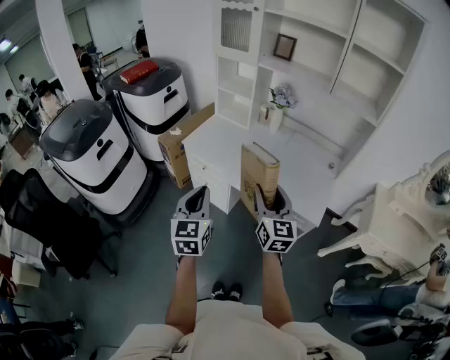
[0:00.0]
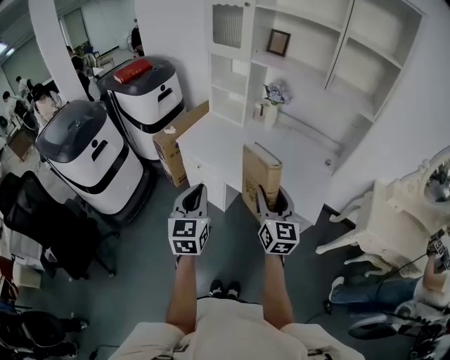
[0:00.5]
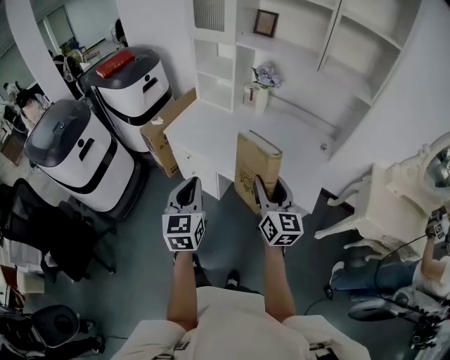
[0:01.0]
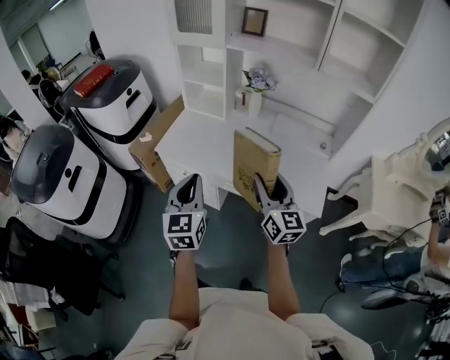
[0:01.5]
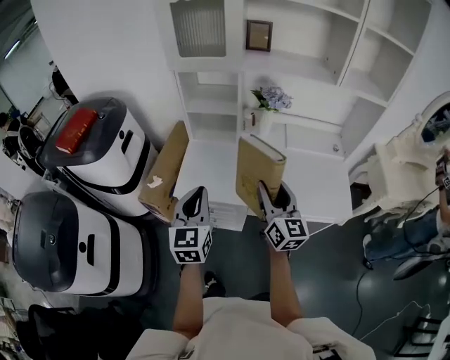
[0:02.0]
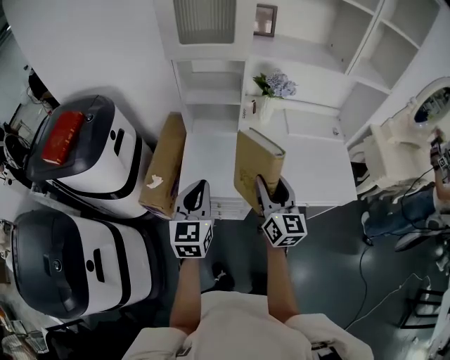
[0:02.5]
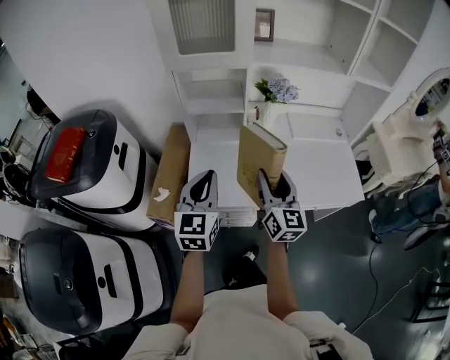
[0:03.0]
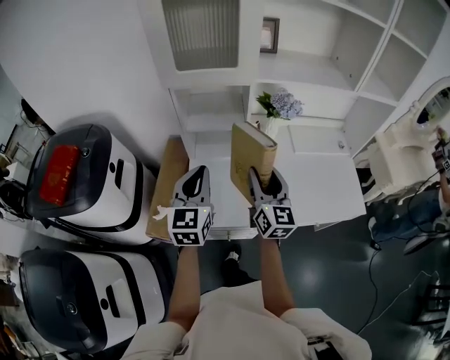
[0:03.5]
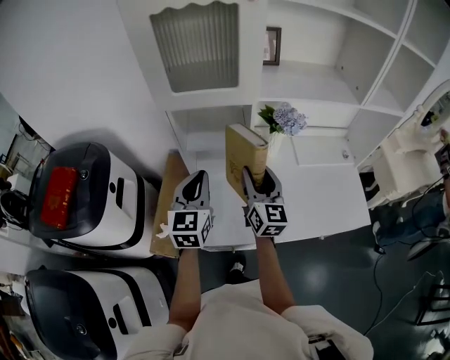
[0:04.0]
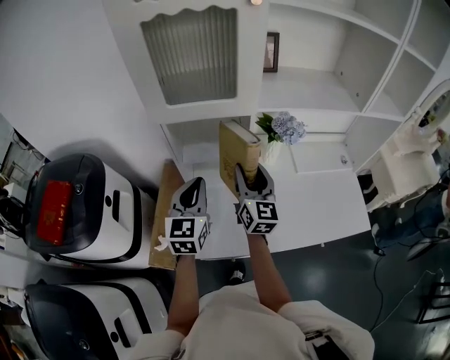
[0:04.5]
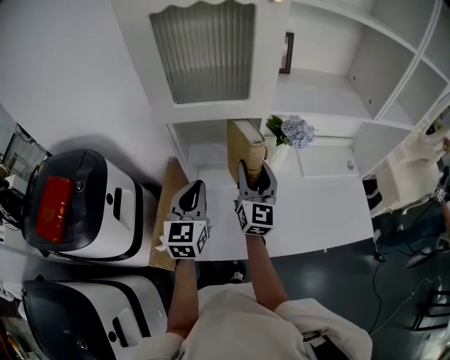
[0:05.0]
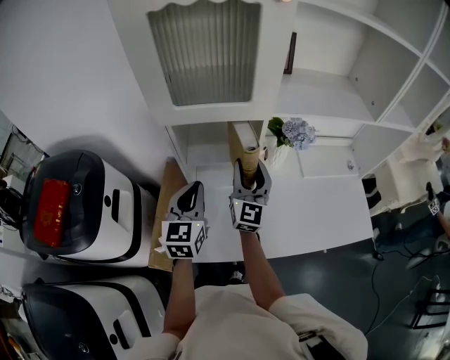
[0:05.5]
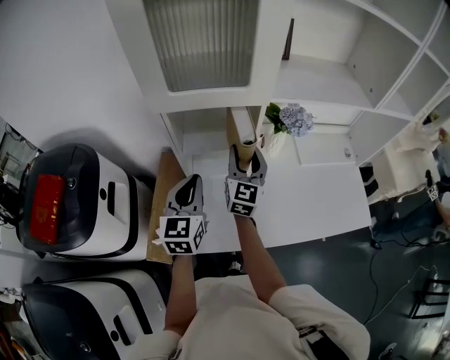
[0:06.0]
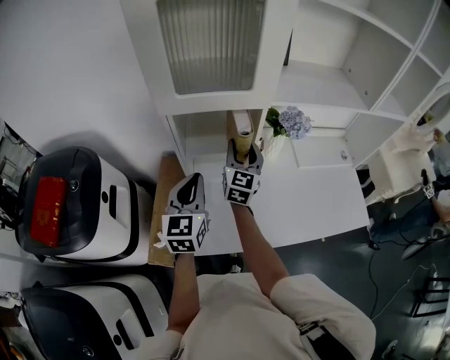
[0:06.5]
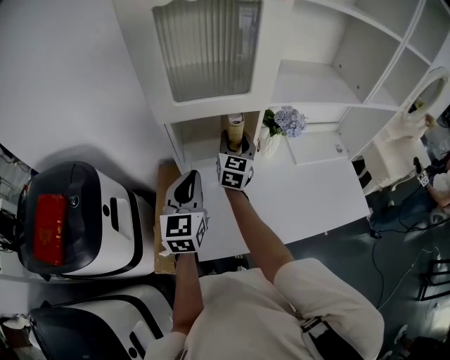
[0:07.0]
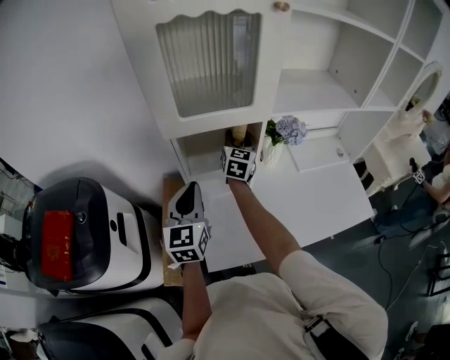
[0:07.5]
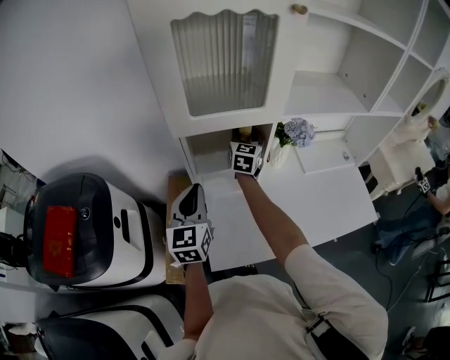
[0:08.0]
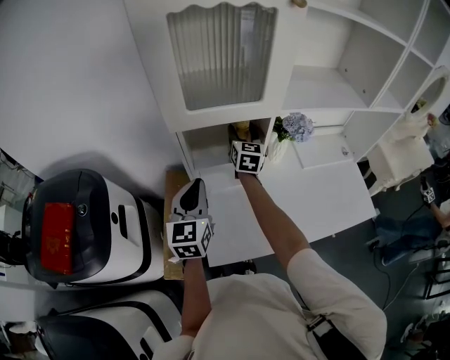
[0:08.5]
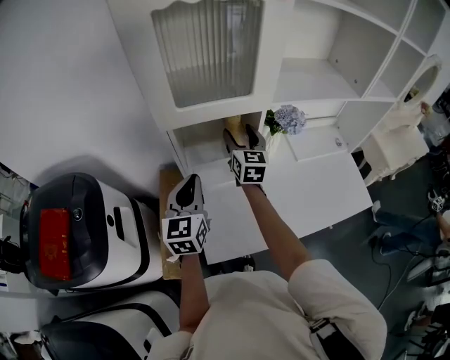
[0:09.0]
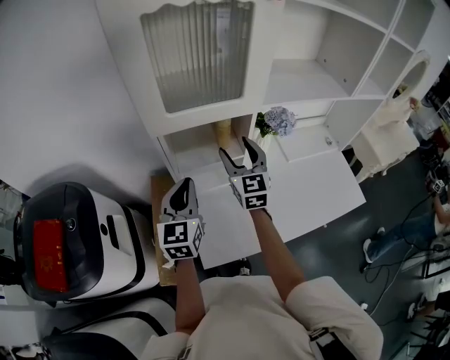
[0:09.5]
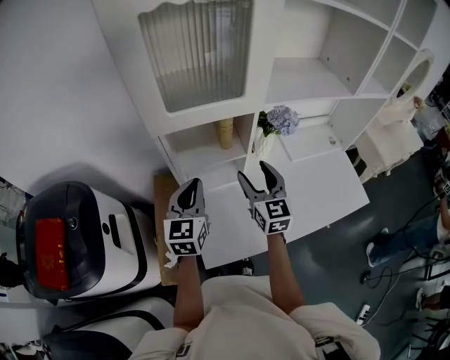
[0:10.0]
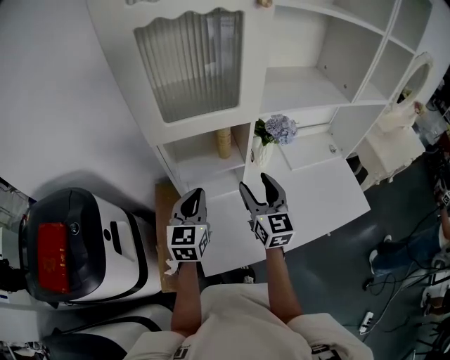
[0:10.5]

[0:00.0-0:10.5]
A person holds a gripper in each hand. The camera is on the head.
0:00.0 to 0:02.0: Both grippers move forward and to the left, some 35 cm. The right gripper swivels about 20 degrees, while the left gripper rotates roughly 20 degrees.
0:02.0 to 0:04.0: The left gripper heads forward, covering approximately 30 cm, while the right gripper goes roughly 30 cm forward and to the left.
0:04.0 to 0:06.5: The right gripper shifts roughly 15 cm forward and to the left, and changes its angle by some 20 degrees. The left gripper ends up roughly 5 cm from where it was.
0:06.5 to 0:08.5: The left gripper shifts by roughly 5 cm, while the right gripper goes about 10 cm forward.
0:08.5 to 0:10.5: The left gripper shifts by approximately 5 cm; the right gripper moves backward, about 20 cm.

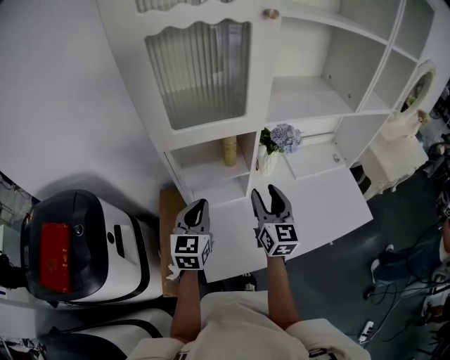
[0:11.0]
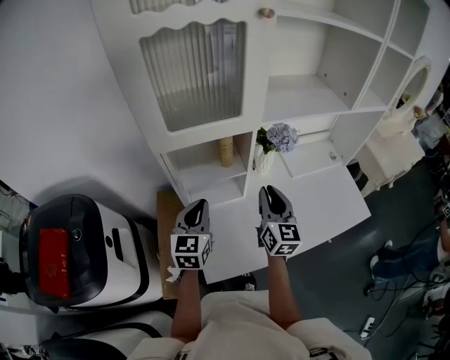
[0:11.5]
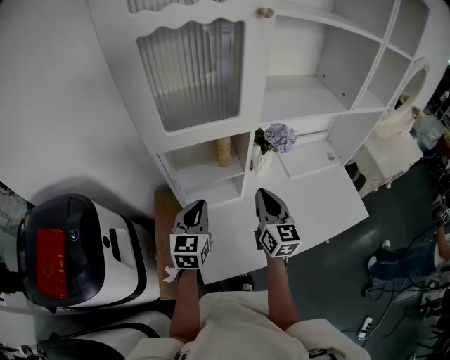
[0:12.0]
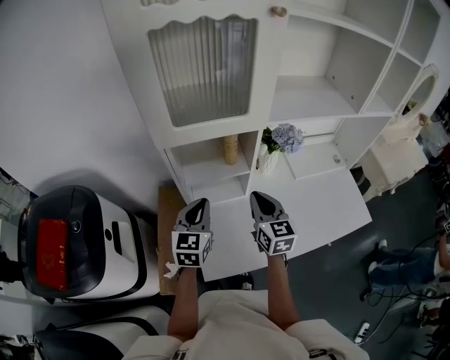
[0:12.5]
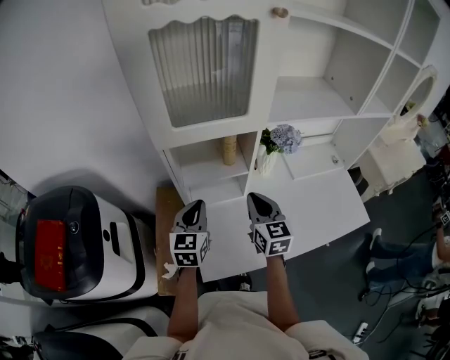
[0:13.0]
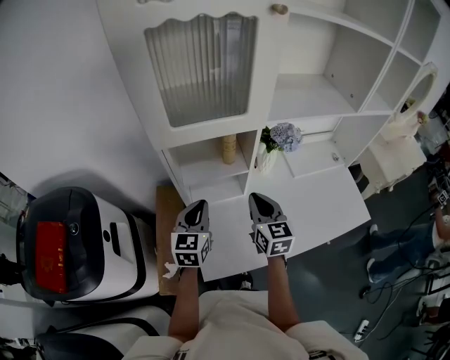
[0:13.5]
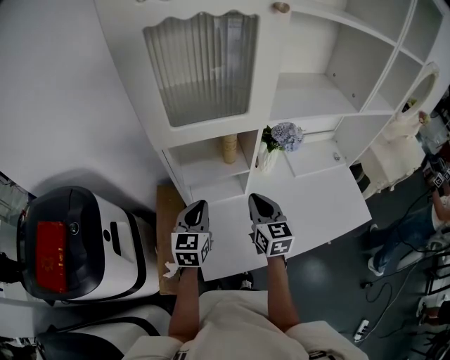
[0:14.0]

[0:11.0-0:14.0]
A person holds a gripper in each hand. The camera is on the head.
0:11.0 to 0:12.5: The right gripper closes.
0:12.5 to 0:14.0: The grippers stay close to where they were, moving slightly.

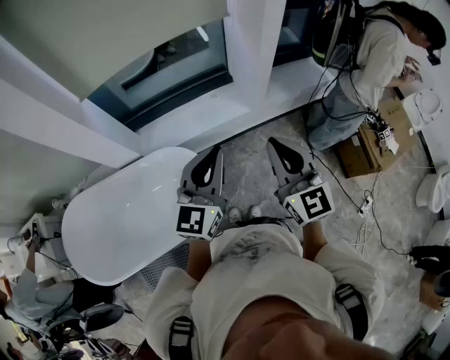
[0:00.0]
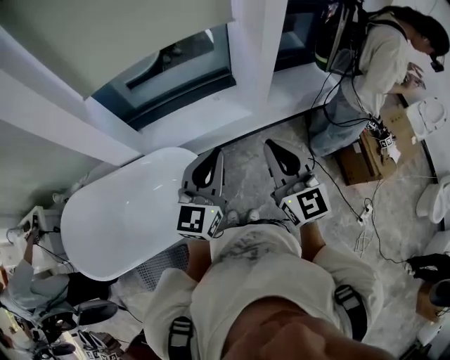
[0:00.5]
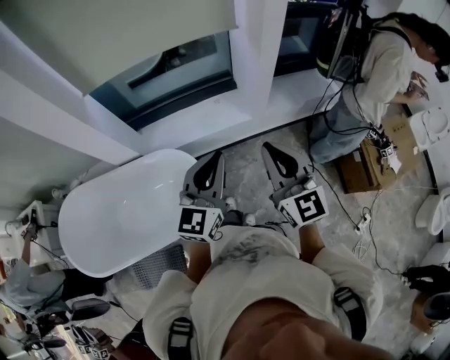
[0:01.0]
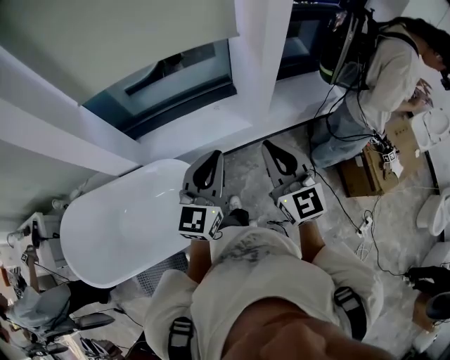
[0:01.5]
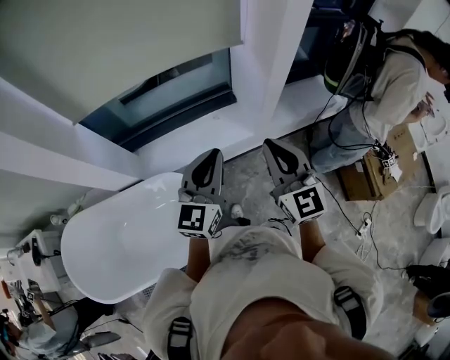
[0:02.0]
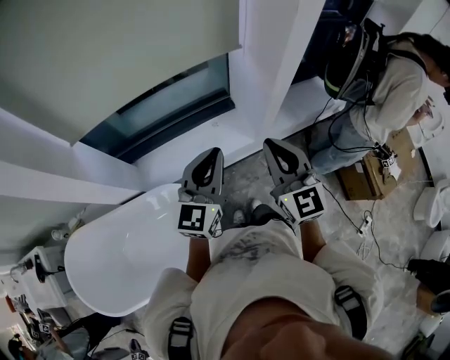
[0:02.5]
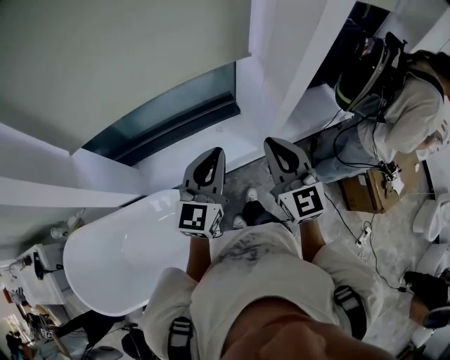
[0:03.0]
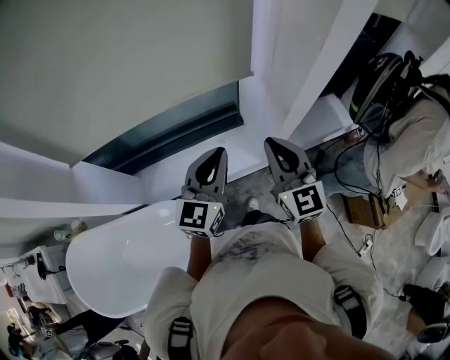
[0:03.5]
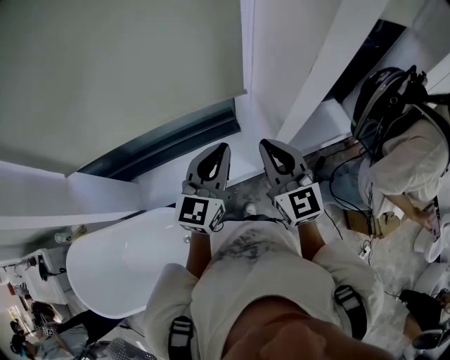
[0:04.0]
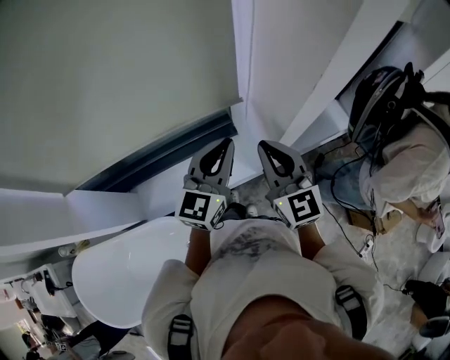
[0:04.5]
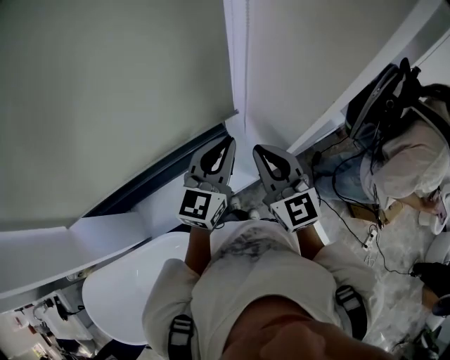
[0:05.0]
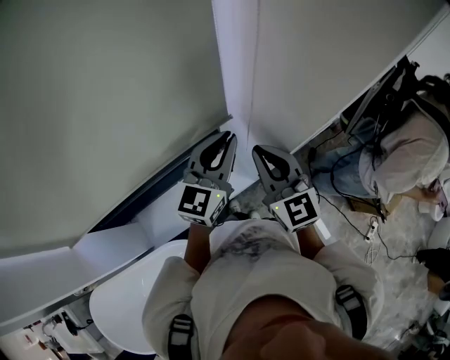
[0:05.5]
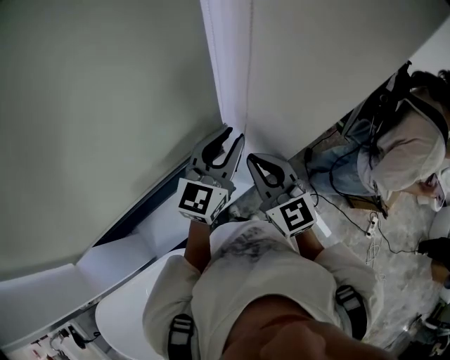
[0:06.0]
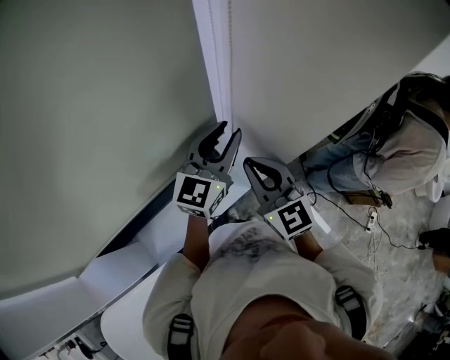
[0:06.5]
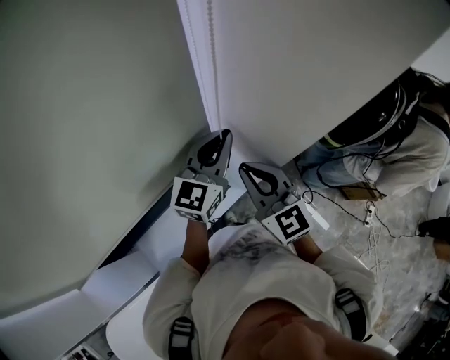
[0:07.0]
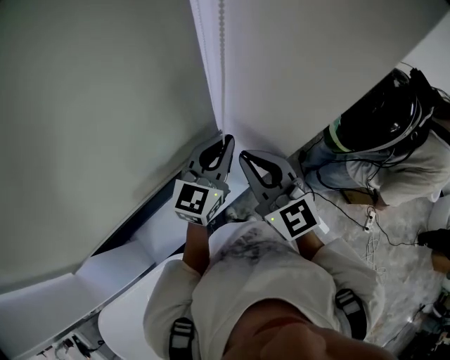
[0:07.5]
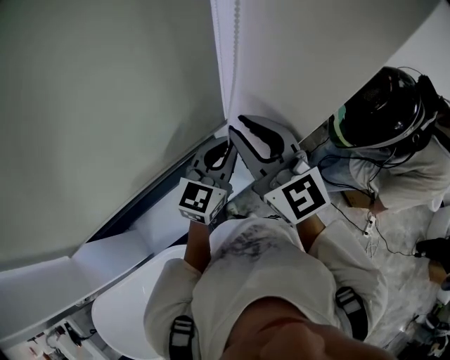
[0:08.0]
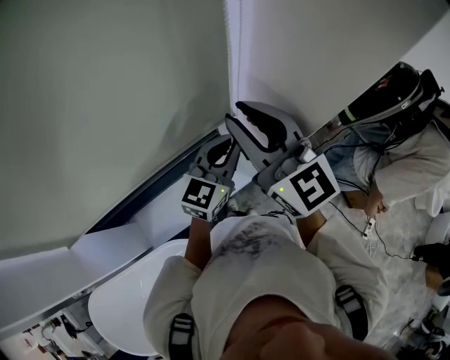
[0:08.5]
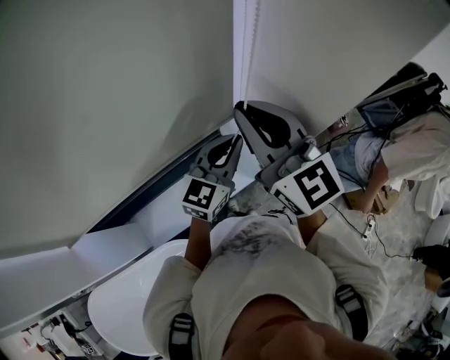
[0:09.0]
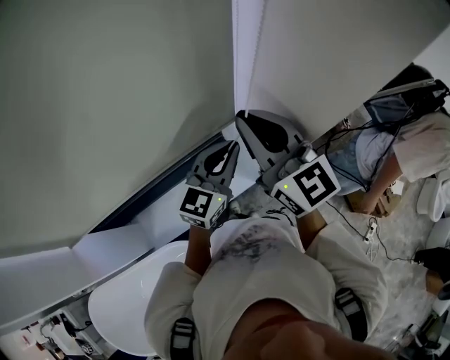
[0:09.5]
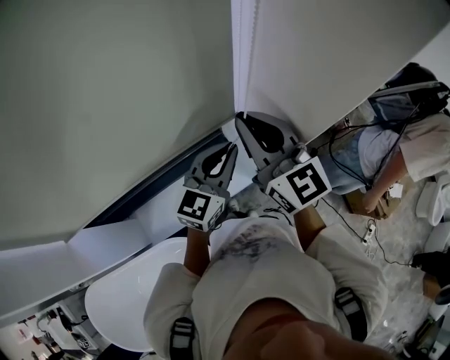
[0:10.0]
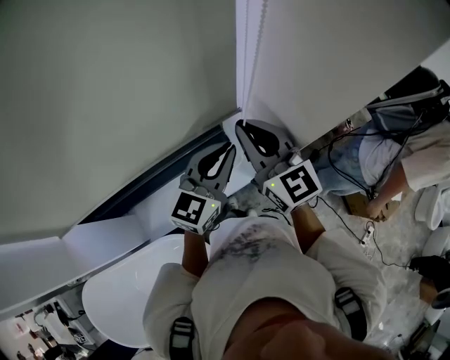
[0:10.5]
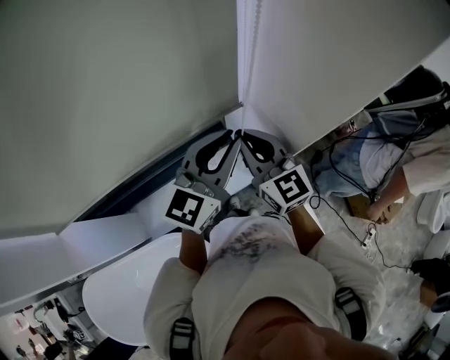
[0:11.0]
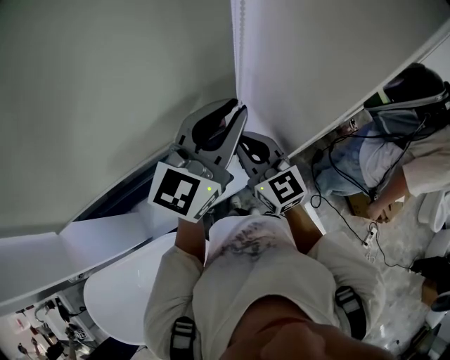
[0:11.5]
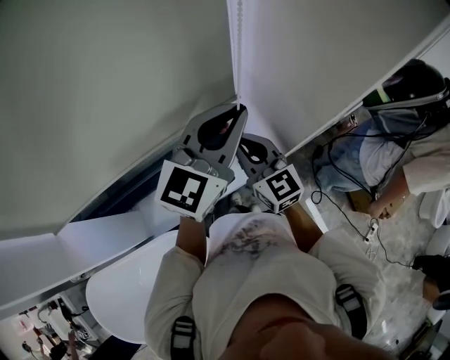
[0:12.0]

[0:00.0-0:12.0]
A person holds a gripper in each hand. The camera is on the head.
0:00.0 to 0:02.0: The grippers both shift forward by some 15 cm.
0:02.0 to 0:04.0: Both grippers travel together forward, approximately 25 cm.
0:04.0 to 0:06.0: The right gripper travels forward by about 10 cm. Meanwhile the left gripper shifts about 15 cm forward, and swivels approximately 20 degrees.
0:06.0 to 0:08.0: The left gripper closes. The right gripper is displaced upward by approximately 10 cm.
0:08.0 to 0:10.0: The grippers move only a little.
0:10.0 to 0:12.0: The right gripper travels downward by some 10 cm. Meanwhile the left gripper moves upward, some 15 cm.

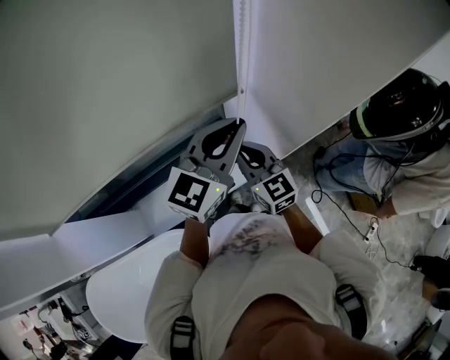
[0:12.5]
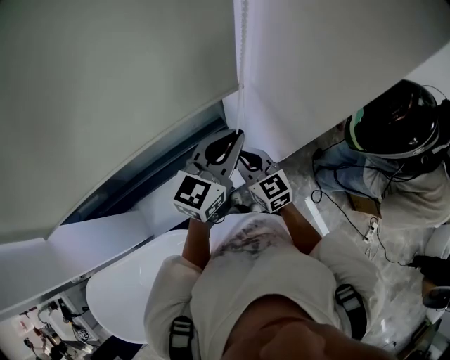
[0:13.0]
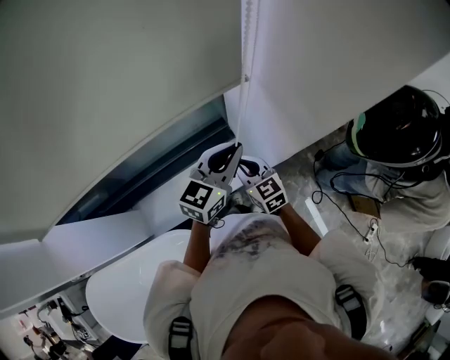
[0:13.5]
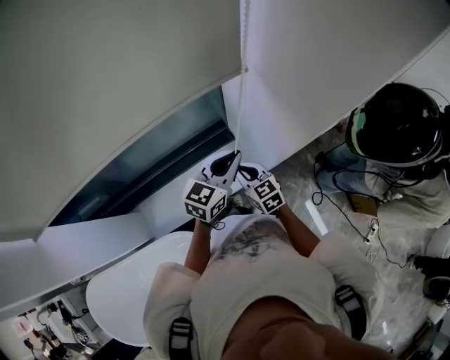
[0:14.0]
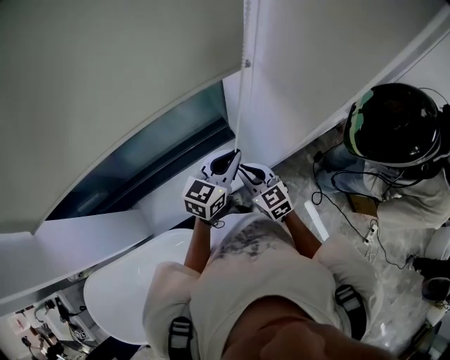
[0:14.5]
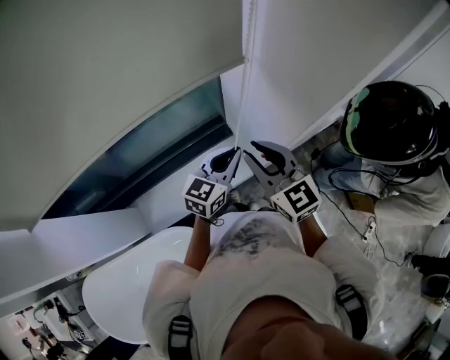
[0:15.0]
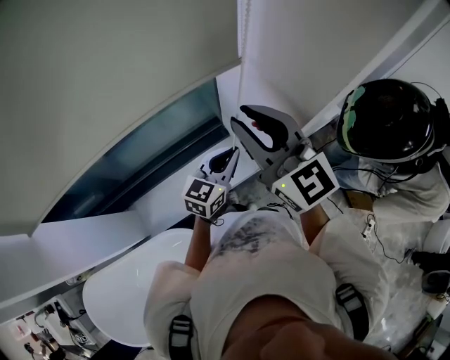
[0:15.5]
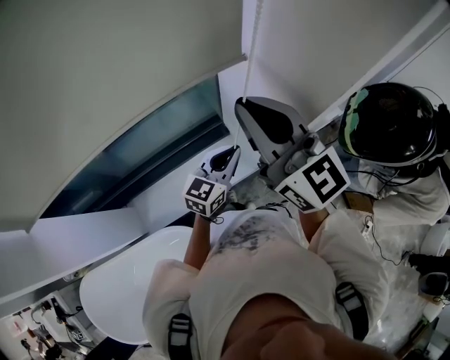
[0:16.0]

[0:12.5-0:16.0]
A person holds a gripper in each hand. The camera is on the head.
0:12.5 to 0:14.5: The right gripper goes approximately 15 cm downward and backward. Meanwhile the left gripper travels downward by some 15 cm.
0:14.5 to 0:16.0: The right gripper goes some 35 cm upward, and angles its fingers upward, by roughly 30 degrees.
